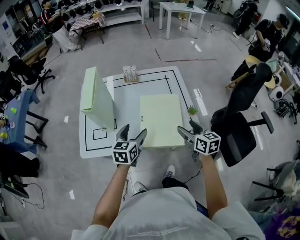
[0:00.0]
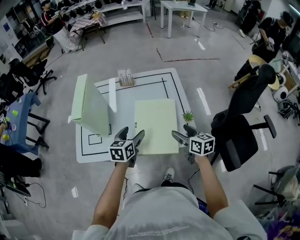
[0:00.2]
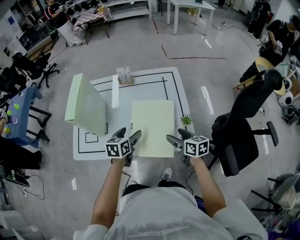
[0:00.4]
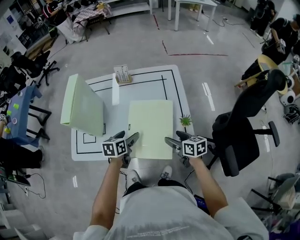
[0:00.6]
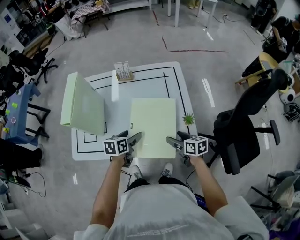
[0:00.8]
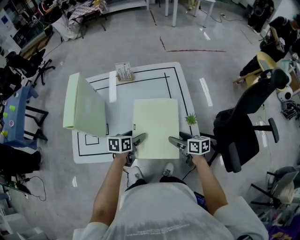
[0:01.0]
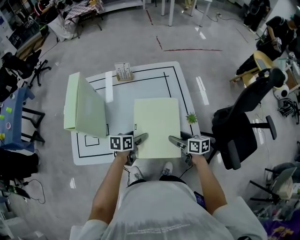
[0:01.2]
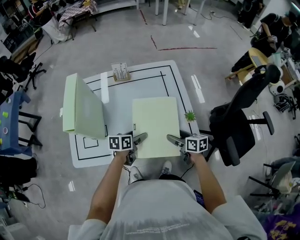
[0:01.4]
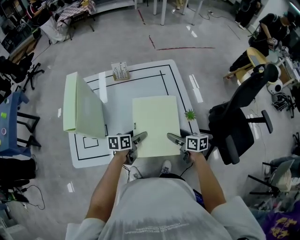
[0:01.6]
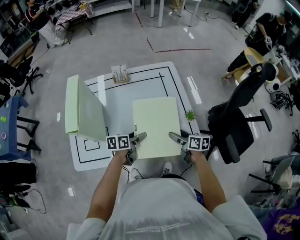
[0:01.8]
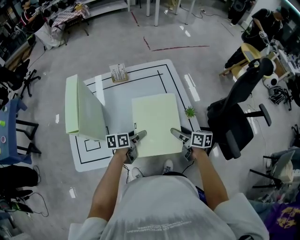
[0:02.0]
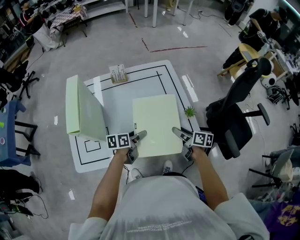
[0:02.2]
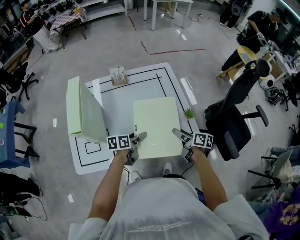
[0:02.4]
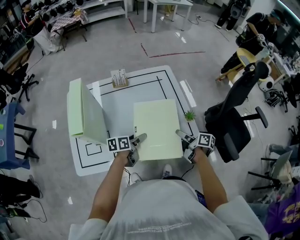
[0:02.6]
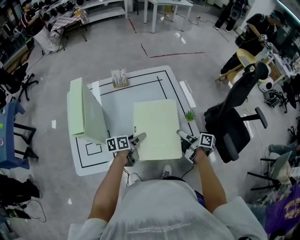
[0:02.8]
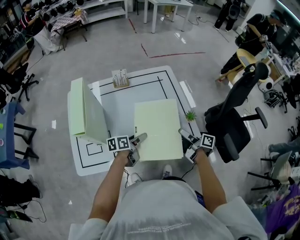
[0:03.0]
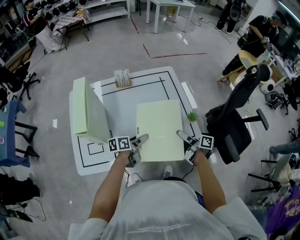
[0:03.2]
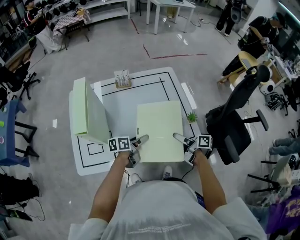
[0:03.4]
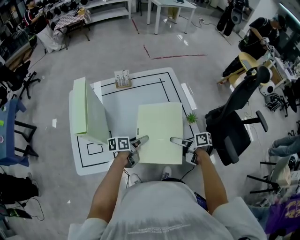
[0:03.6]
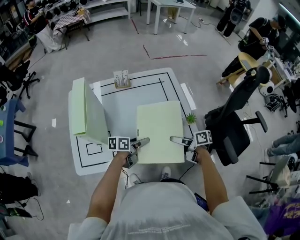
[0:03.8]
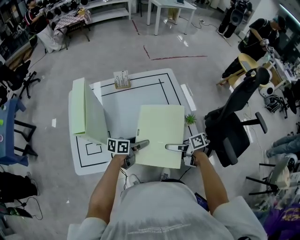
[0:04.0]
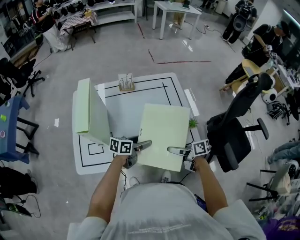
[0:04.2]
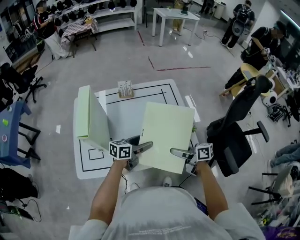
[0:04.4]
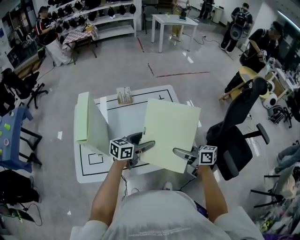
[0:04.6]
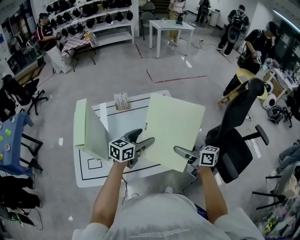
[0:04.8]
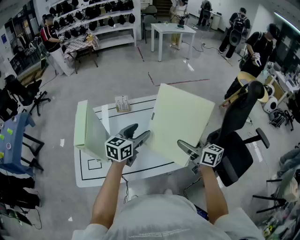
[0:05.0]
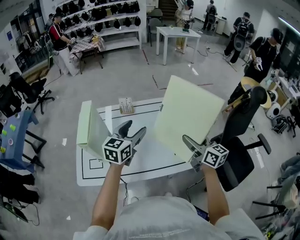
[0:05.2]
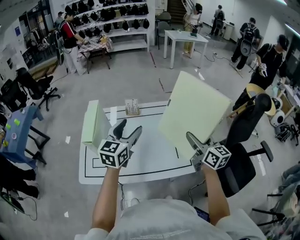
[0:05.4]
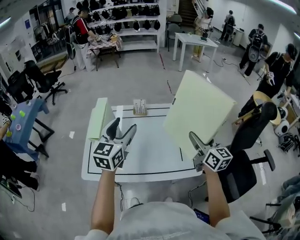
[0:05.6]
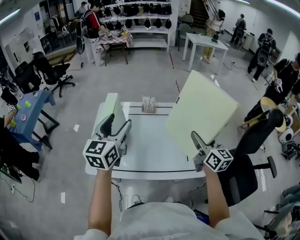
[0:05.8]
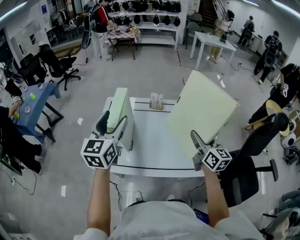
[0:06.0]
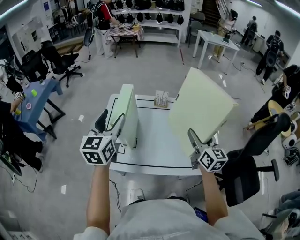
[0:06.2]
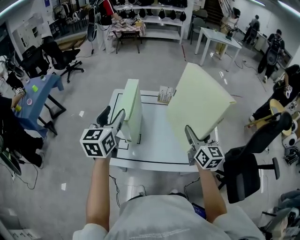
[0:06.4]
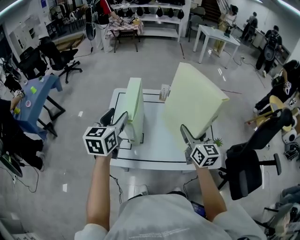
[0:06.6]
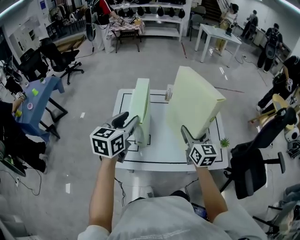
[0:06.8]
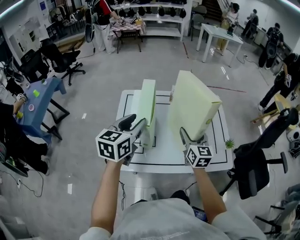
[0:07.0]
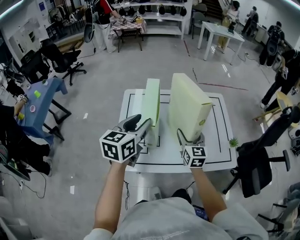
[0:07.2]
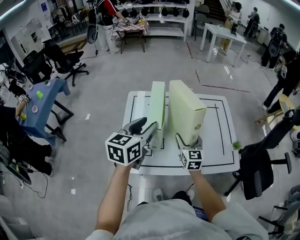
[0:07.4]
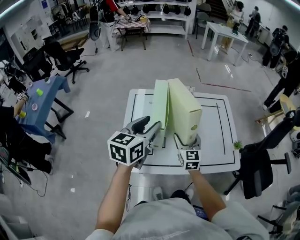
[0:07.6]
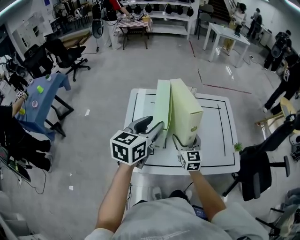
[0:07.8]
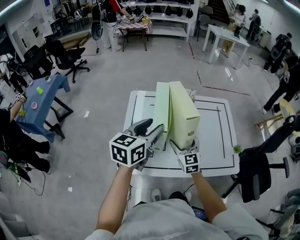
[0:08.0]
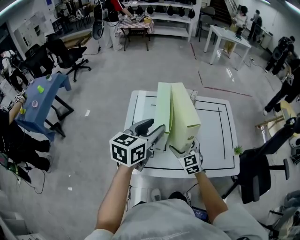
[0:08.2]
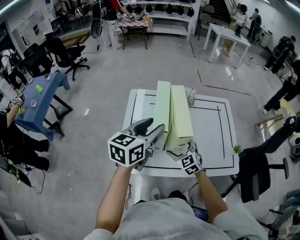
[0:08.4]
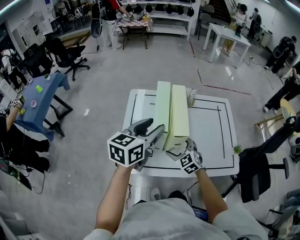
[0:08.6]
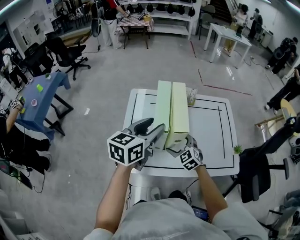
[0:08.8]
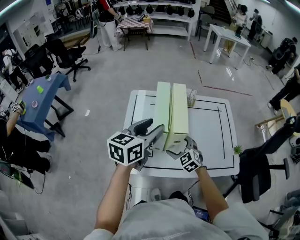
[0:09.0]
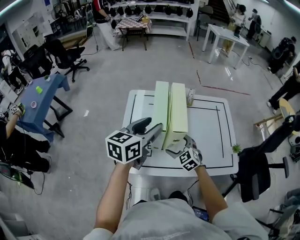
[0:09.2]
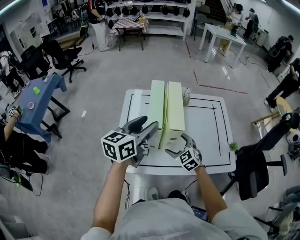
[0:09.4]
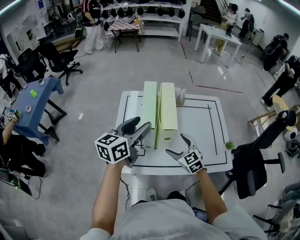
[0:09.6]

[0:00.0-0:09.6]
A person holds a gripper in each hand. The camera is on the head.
0:00.0 to 0:01.6: The left gripper moves downward and forward, approximately 15 cm, and turns by approximately 40 degrees. Meanwhile the right gripper is displaced downward by approximately 15 cm, and turns by some 20 degrees.
0:01.6 to 0:03.2: The right gripper swivels about 40 degrees.
0:03.2 to 0:04.8: The grippers both shift upward by some 15 cm. The right gripper changes its angle by approximately 40 degrees, while the left gripper rotates around the line of its fingers by approximately 40 degrees, clockwise from behind.
0:04.8 to 0:06.4: The right gripper moves to the left, upward and forward, roughly 15 cm, and changes its angle by some 30 degrees. The left gripper travels to the left and upward by roughly 35 cm, and changes its angle by some 50 degrees.
0:06.4 to 0:08.0: The right gripper shifts approximately 25 cm to the left and downward, and turns by roughly 20 degrees; the left gripper goes about 5 cm downward, and swivels some 30 degrees.
0:08.0 to 0:09.6: The right gripper moves some 5 cm, and rotates about 20 degrees.

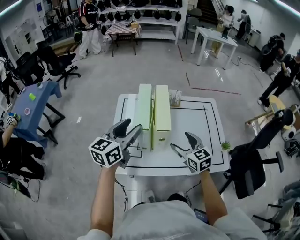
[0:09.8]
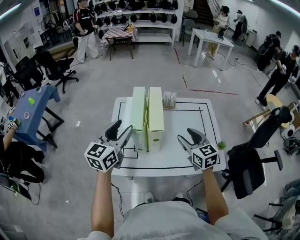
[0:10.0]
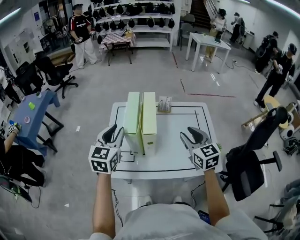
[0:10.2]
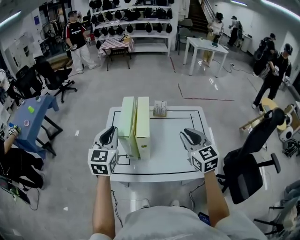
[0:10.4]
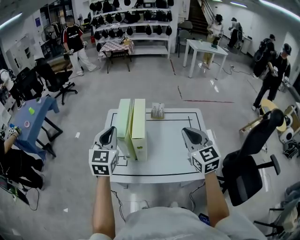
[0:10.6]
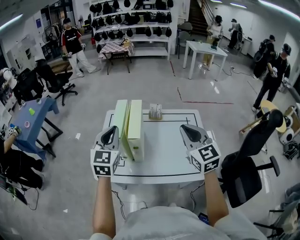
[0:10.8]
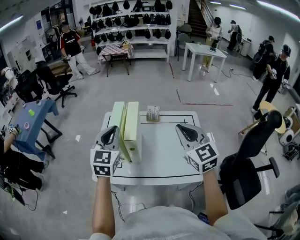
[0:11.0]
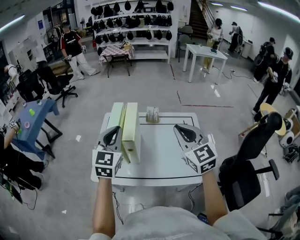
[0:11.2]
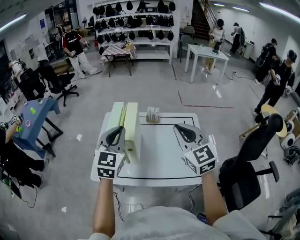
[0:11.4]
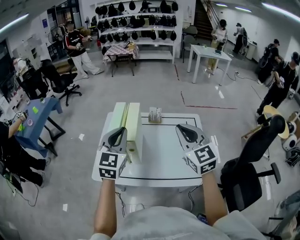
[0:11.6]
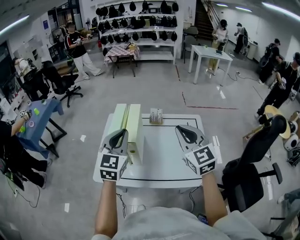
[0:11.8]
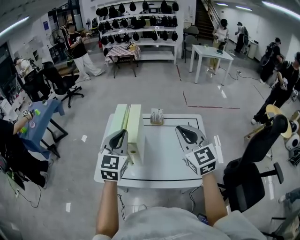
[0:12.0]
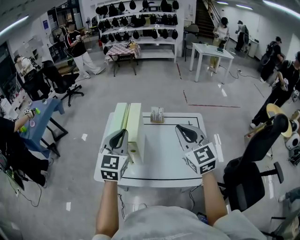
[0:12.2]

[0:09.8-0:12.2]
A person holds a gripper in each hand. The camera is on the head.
0:09.8 to 0:11.0: The right gripper heads upward and to the right, covering about 25 cm, turns by roughly 20 degrees, and closes its fingers, while the left gripper shifts about 10 cm to the right and upward, swivels approximately 40 degrees, and closes its fingers.
0:11.0 to 0:12.2: The grippers make only small movements.

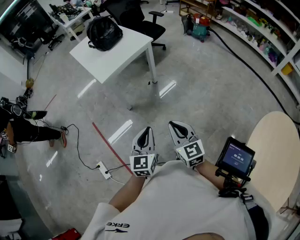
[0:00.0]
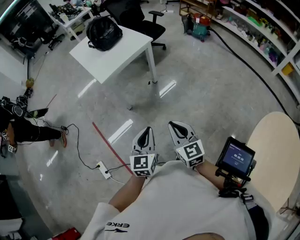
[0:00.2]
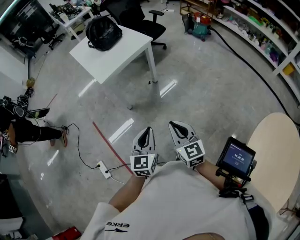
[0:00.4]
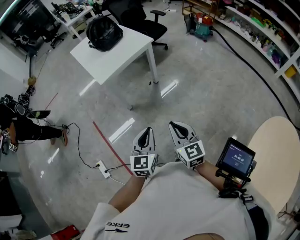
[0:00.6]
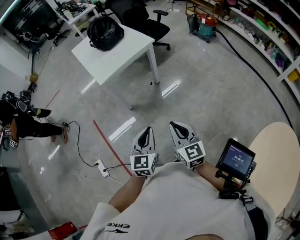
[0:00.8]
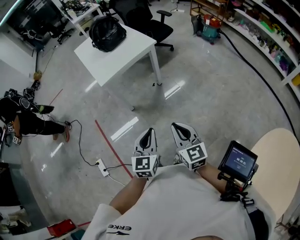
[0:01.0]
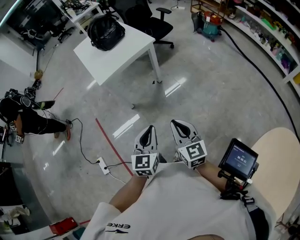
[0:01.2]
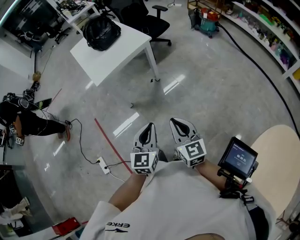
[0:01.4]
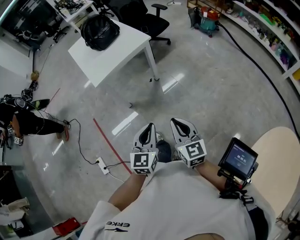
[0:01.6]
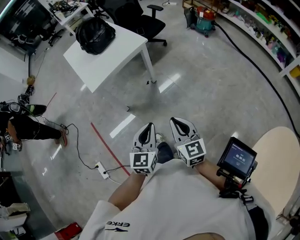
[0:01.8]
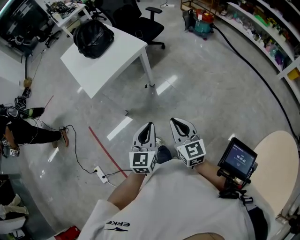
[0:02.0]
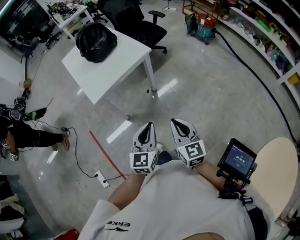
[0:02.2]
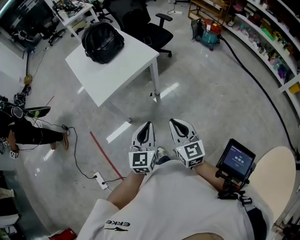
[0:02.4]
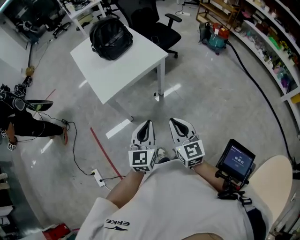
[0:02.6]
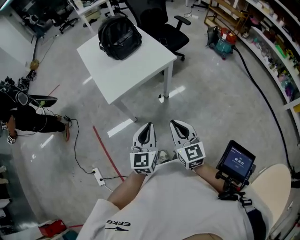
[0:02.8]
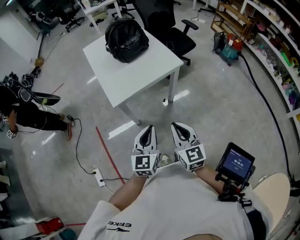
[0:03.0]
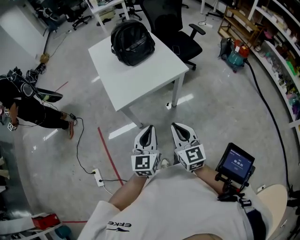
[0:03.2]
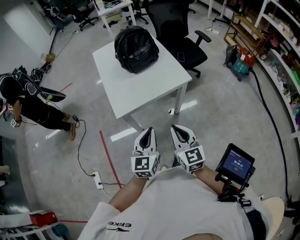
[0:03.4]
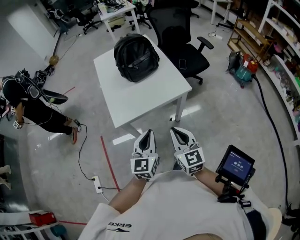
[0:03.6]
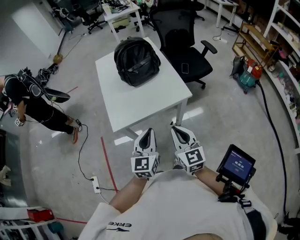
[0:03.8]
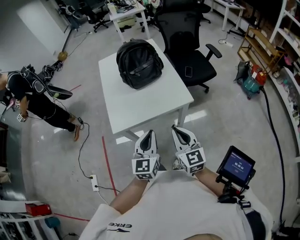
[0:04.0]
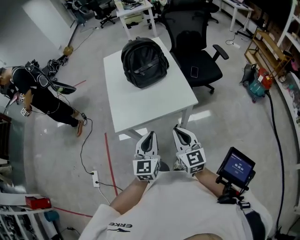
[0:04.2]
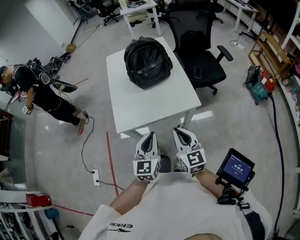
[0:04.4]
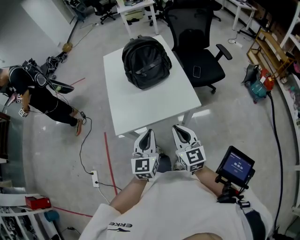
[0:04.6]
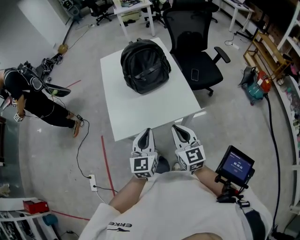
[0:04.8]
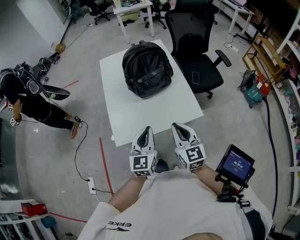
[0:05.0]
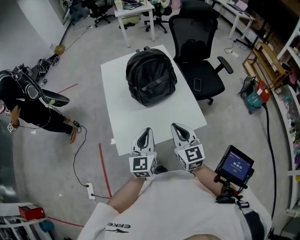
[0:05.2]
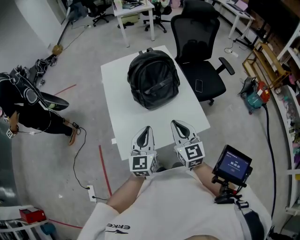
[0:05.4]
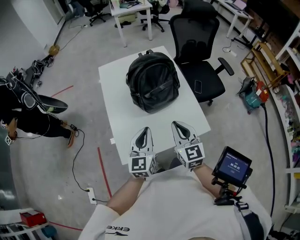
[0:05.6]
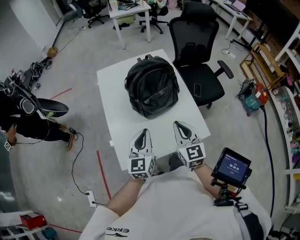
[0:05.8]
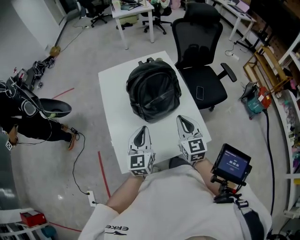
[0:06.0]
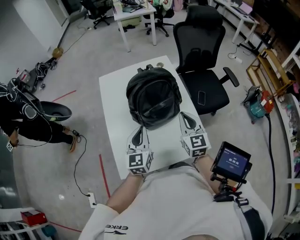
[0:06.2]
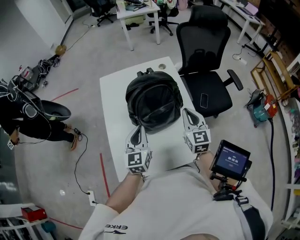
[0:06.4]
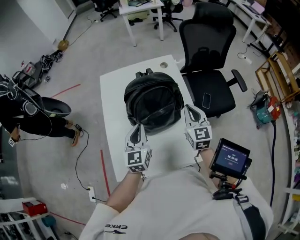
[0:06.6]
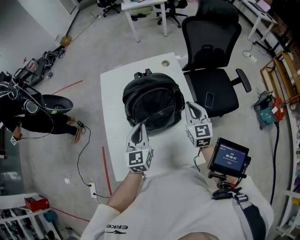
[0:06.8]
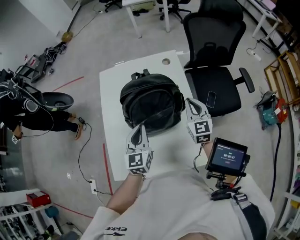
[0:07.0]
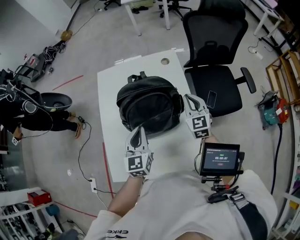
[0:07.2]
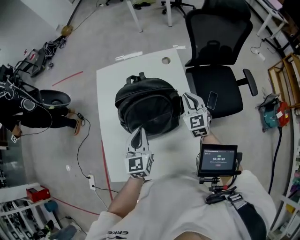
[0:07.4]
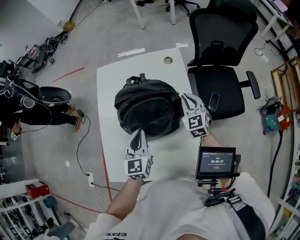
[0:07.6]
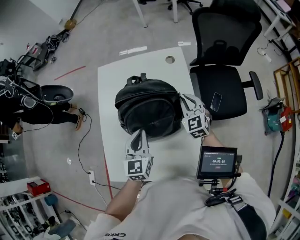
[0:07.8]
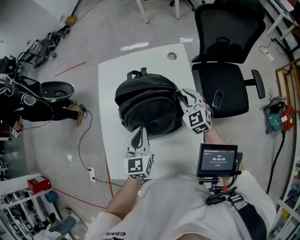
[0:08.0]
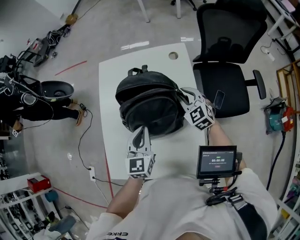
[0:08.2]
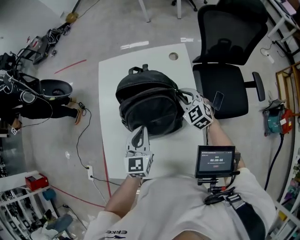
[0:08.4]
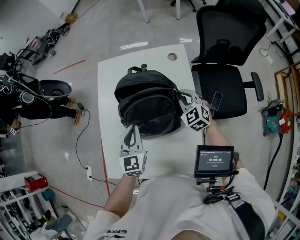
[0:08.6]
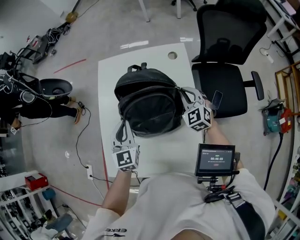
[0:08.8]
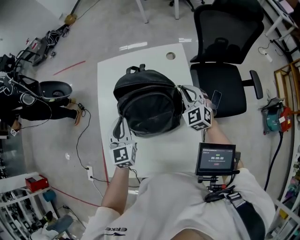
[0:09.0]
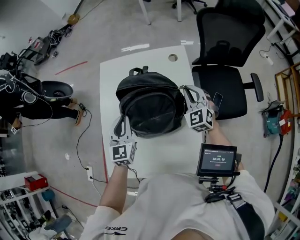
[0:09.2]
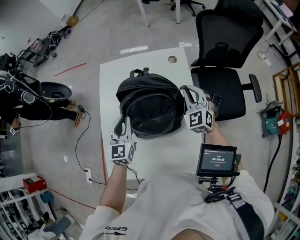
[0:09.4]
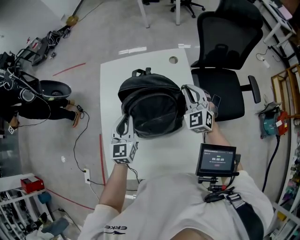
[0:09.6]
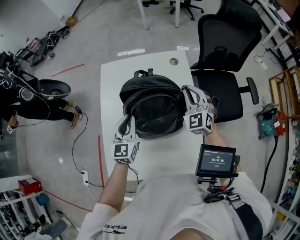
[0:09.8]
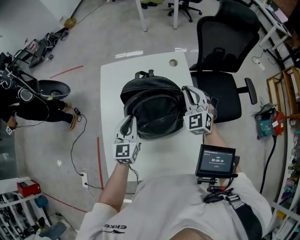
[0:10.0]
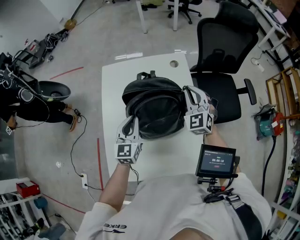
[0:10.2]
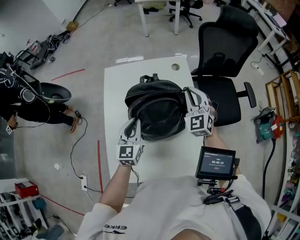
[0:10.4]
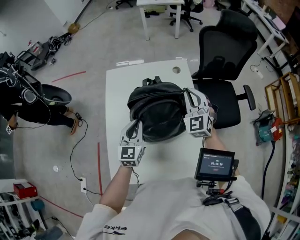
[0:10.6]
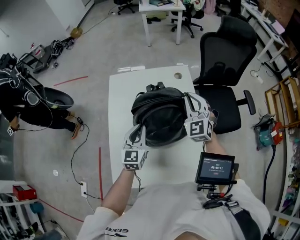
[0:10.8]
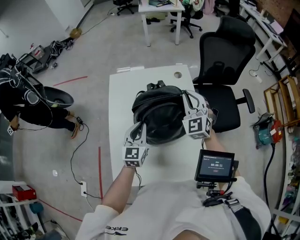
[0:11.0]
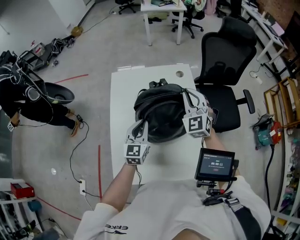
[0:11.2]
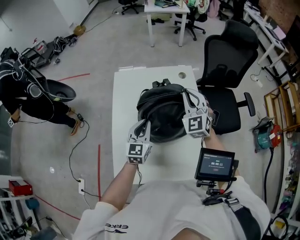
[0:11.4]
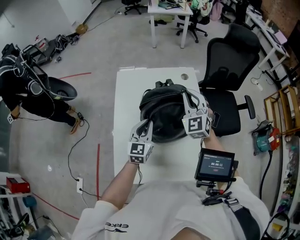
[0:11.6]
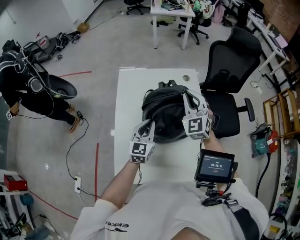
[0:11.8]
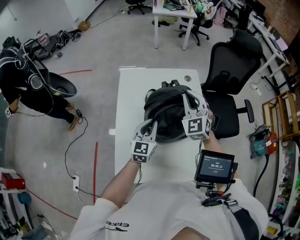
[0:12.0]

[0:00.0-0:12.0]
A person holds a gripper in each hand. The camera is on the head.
0:00.0 to 0:01.6: Both grippers travel together to the right and forward, about 15 cm.
0:01.6 to 0:03.0: Both grippers move forward and to the left, roughly 25 cm.
0:03.0 to 0:04.4: The left gripper goes approximately 20 cm forward and to the right. Meanwhile the right gripper goes about 20 cm forward.
0:04.4 to 0:06.0: The two grippers go about 30 cm forward.
0:06.0 to 0:07.6: The left gripper travels forward and to the right by roughly 15 cm; the right gripper goes about 30 cm forward, and turns by some 20 degrees.
0:07.6 to 0:09.0: The left gripper travels to the left and forward by approximately 10 cm.
0:09.0 to 0:10.4: The right gripper heads upward, covering some 10 cm.
0:10.4 to 0:12.0: The right gripper is displaced to the left and upward by about 10 cm.
